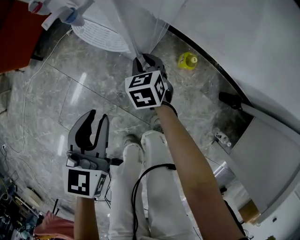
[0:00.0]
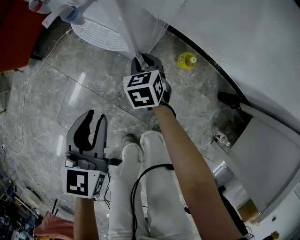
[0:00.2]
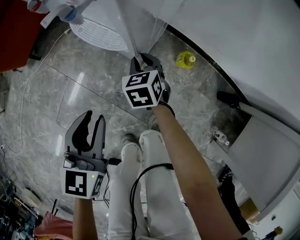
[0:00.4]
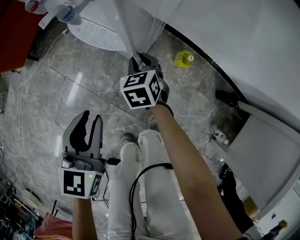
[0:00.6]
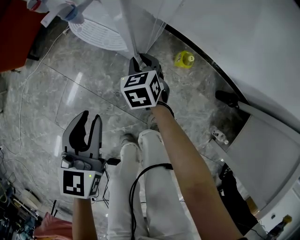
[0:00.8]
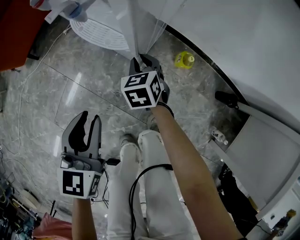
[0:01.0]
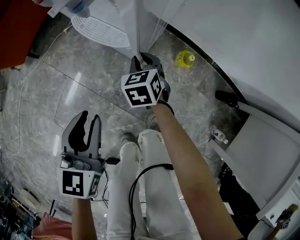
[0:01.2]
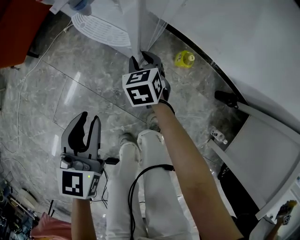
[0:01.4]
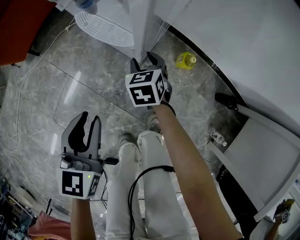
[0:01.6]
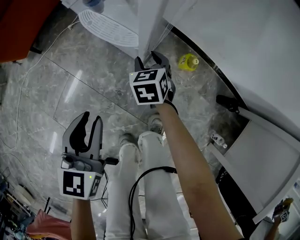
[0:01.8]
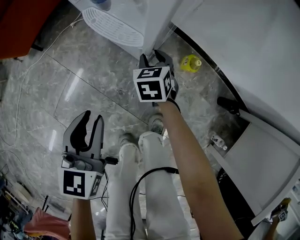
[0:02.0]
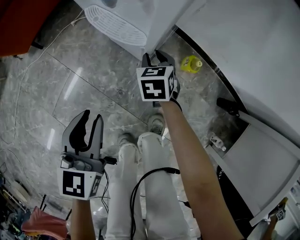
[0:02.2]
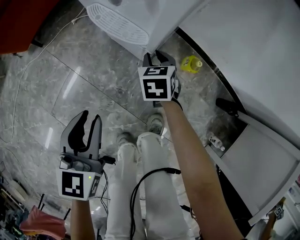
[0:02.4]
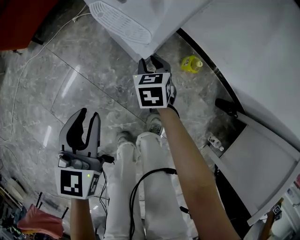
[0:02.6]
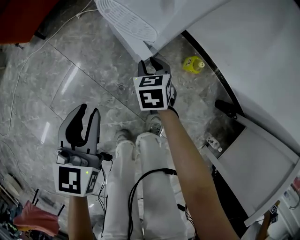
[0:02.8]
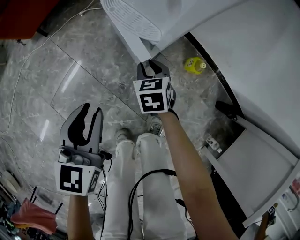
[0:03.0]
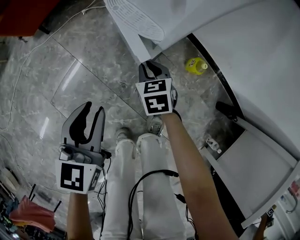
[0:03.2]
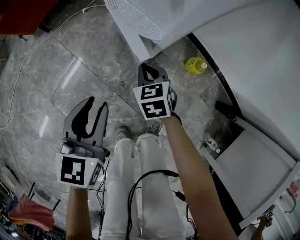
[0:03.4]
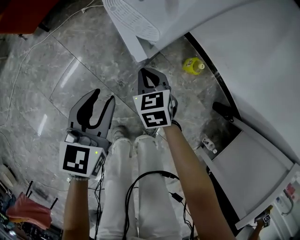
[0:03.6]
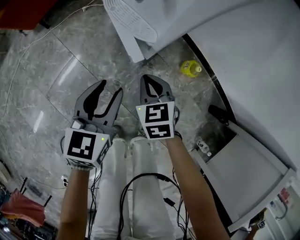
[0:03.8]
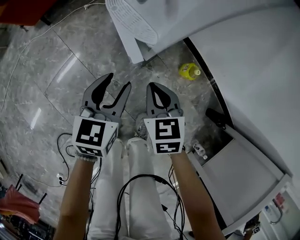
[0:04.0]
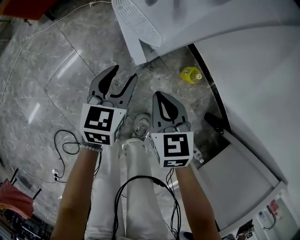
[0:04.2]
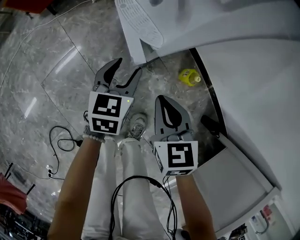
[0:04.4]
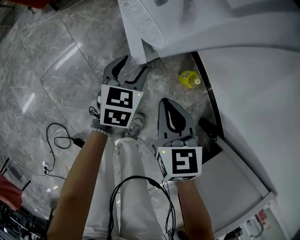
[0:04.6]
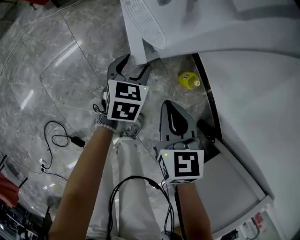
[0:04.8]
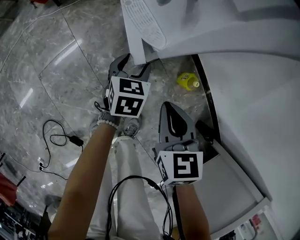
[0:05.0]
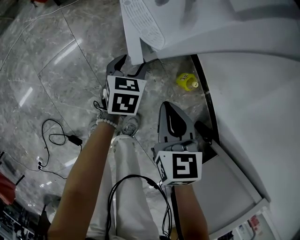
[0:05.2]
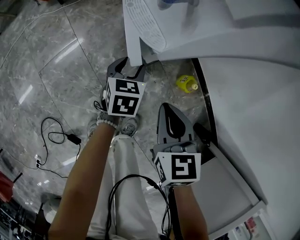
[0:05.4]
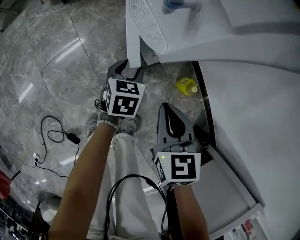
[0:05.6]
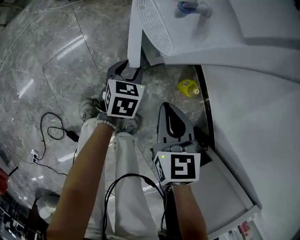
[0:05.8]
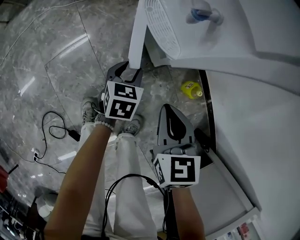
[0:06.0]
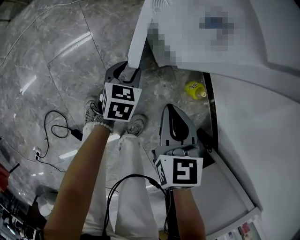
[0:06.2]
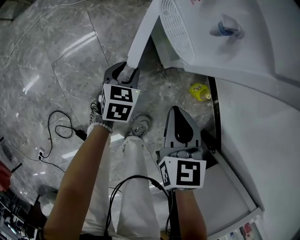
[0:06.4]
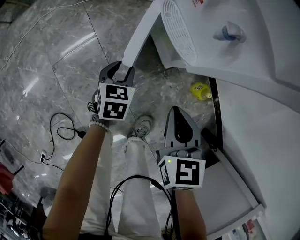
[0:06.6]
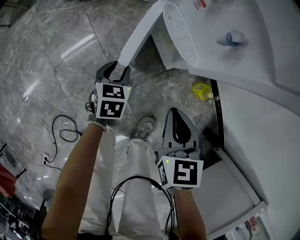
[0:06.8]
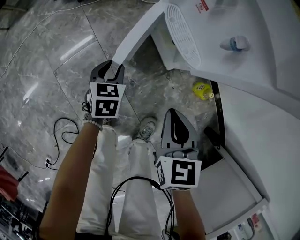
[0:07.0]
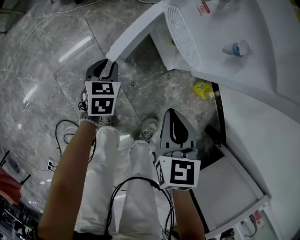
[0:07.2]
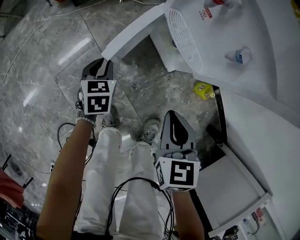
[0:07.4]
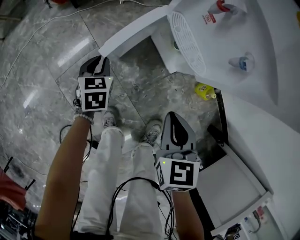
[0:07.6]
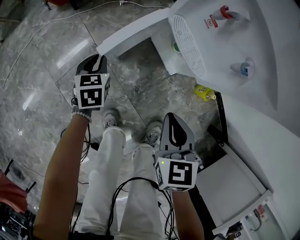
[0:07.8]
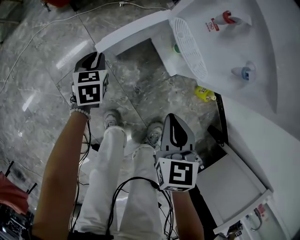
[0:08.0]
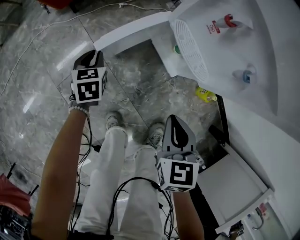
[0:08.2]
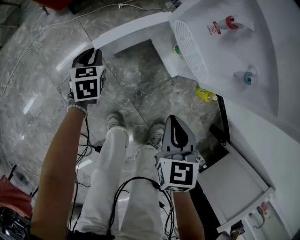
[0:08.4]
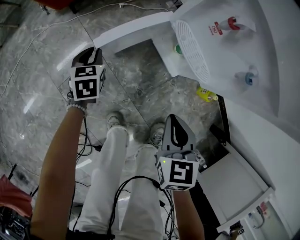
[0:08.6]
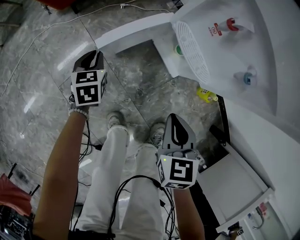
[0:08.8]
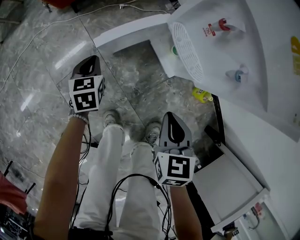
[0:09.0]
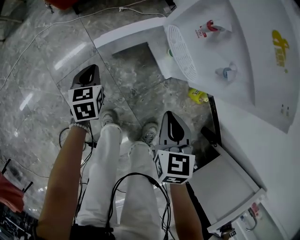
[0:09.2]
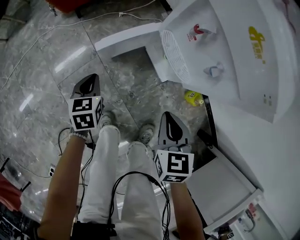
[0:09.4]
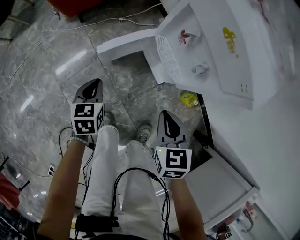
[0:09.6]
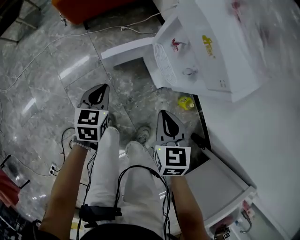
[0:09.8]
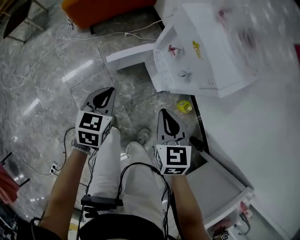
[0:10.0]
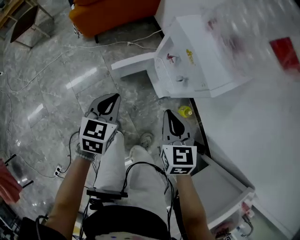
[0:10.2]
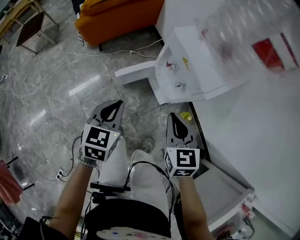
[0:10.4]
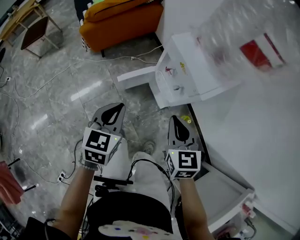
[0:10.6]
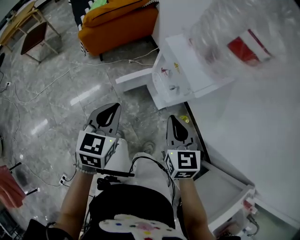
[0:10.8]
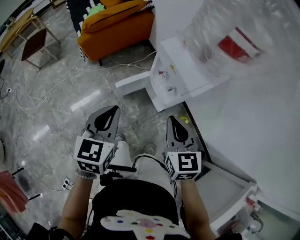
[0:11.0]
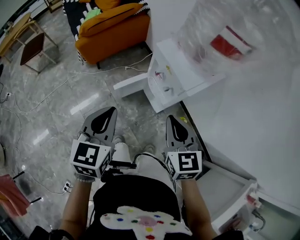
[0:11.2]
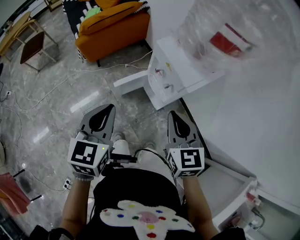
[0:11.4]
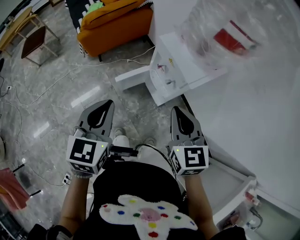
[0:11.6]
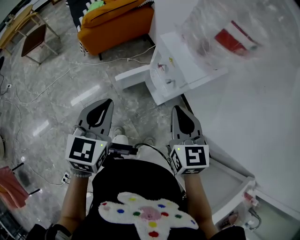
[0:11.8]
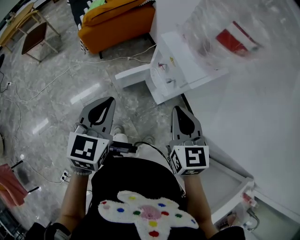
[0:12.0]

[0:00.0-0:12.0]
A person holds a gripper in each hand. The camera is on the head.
0:00.0 to 0:01.6: The right gripper opens its fingers.
0:01.6 to 0:03.0: The right gripper moves about 5 cm, and closes its fingers.
0:03.0 to 0:04.4: The right gripper shifts about 15 cm upward, backward and to the right, and closes up, while the left gripper travels downward, to the right and forward by some 15 cm, and opens its fingers.
0:04.4 to 0:06.0: The left gripper heads downward, covering roughly 5 cm.
0:06.0 to 0:07.6: The right gripper heads to the left, covering some 10 cm; the left gripper shifts some 20 cm to the left, and closes.
0:07.6 to 0:09.0: The left gripper moves roughly 5 cm.
0:09.0 to 0:10.4: The grippers both shift upward by roughly 35 cm.
0:10.4 to 0:12.0: Both grippers travel together upward, some 15 cm.

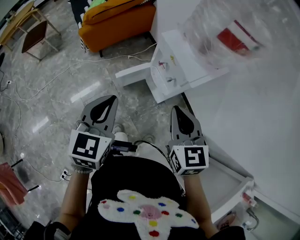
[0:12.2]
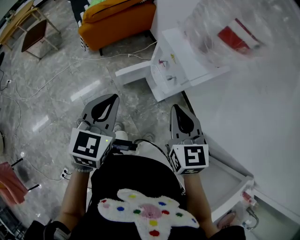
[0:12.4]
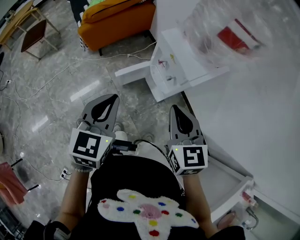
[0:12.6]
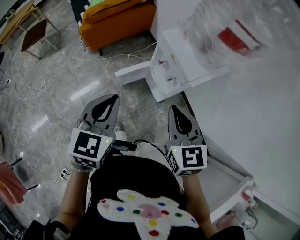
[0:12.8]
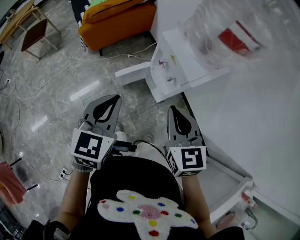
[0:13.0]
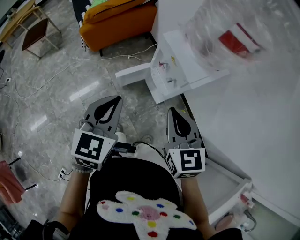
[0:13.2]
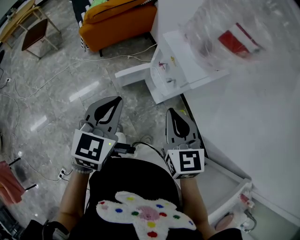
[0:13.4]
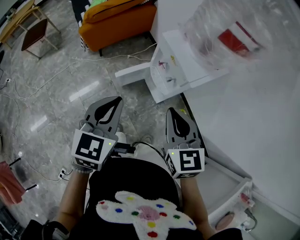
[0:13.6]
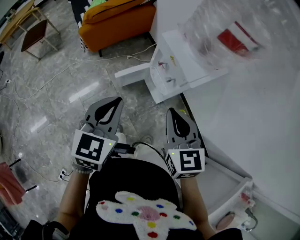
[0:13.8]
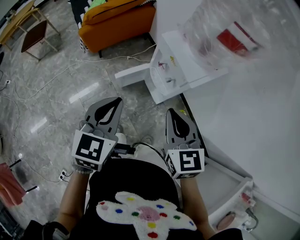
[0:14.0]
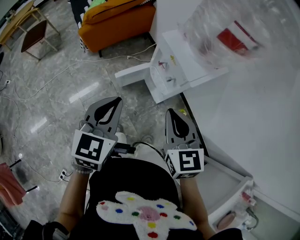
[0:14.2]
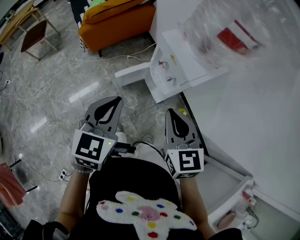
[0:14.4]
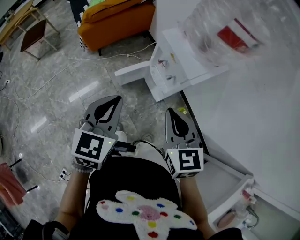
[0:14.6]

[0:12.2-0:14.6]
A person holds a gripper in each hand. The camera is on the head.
0:12.2 to 0:13.4: There are only small adjustments of the grippers.
0:13.4 to 0:14.6: Both grippers stay about where they are.

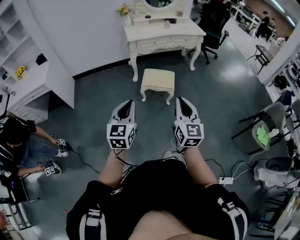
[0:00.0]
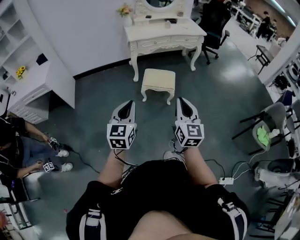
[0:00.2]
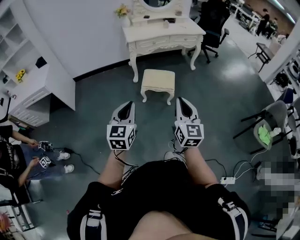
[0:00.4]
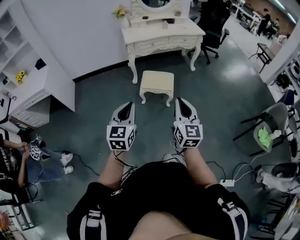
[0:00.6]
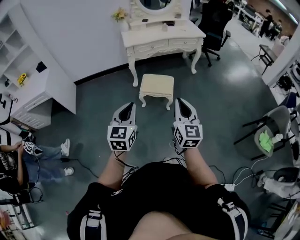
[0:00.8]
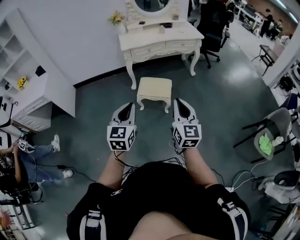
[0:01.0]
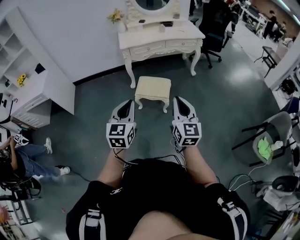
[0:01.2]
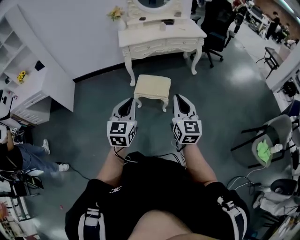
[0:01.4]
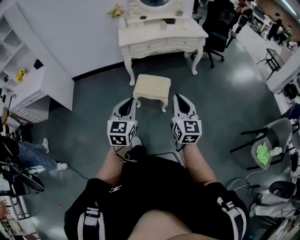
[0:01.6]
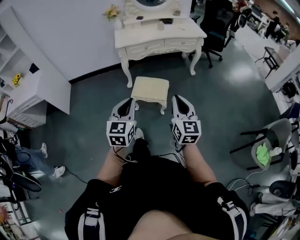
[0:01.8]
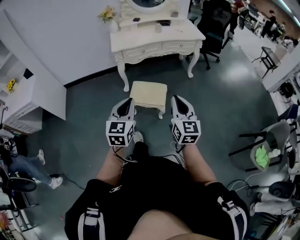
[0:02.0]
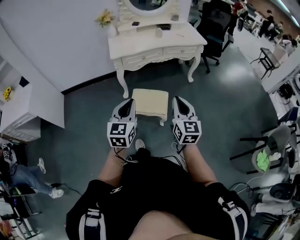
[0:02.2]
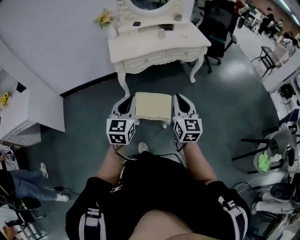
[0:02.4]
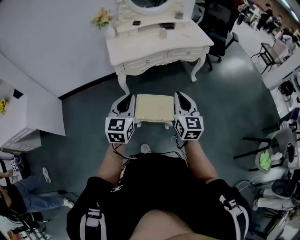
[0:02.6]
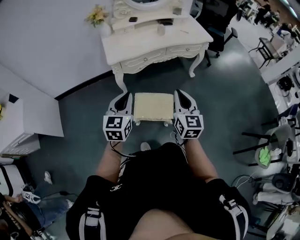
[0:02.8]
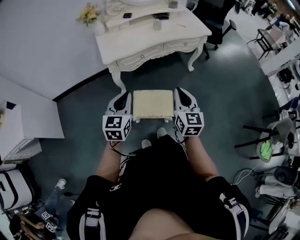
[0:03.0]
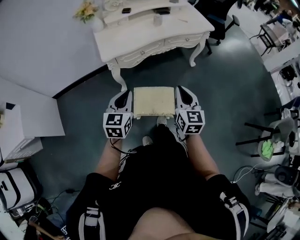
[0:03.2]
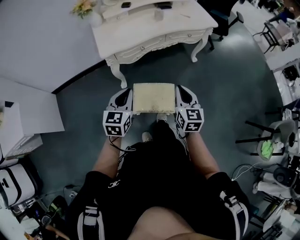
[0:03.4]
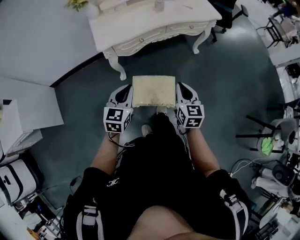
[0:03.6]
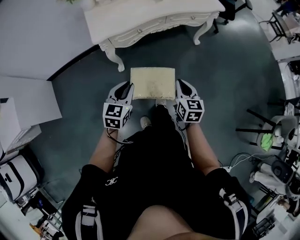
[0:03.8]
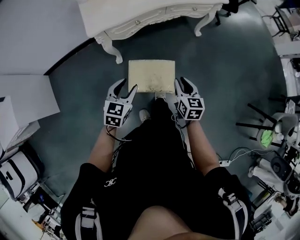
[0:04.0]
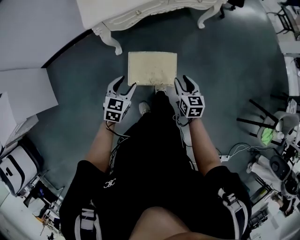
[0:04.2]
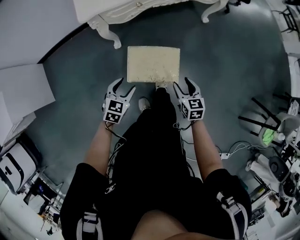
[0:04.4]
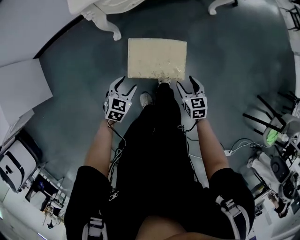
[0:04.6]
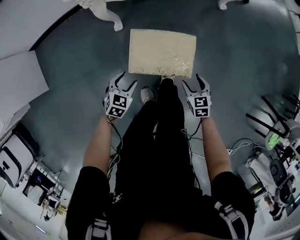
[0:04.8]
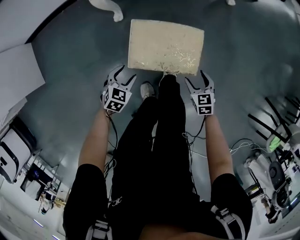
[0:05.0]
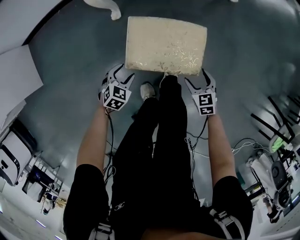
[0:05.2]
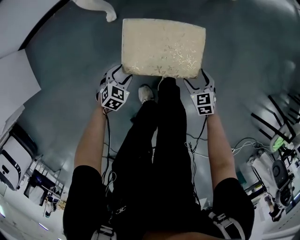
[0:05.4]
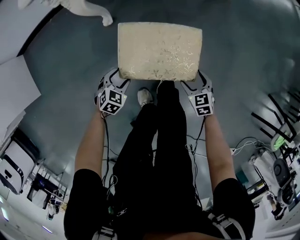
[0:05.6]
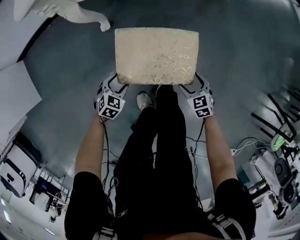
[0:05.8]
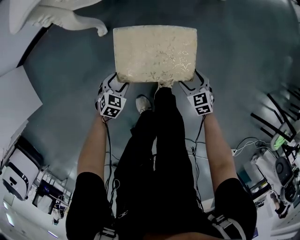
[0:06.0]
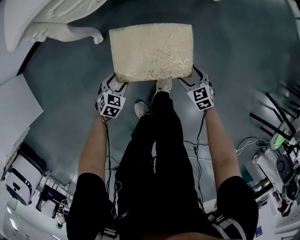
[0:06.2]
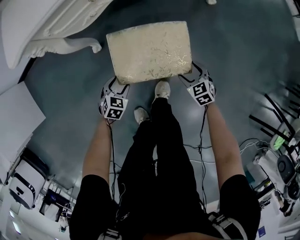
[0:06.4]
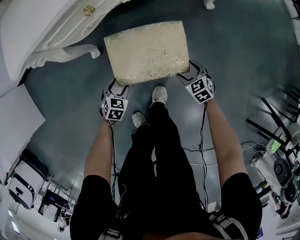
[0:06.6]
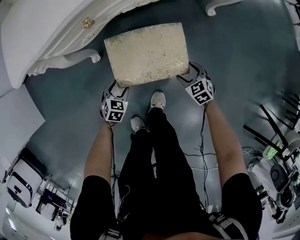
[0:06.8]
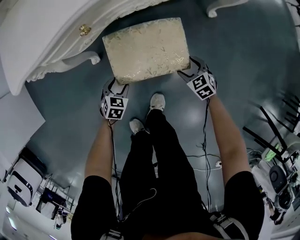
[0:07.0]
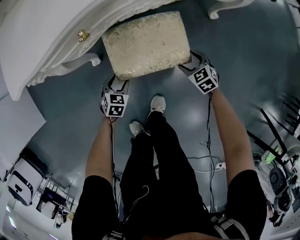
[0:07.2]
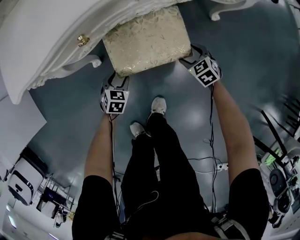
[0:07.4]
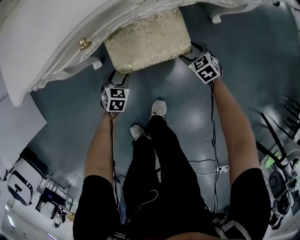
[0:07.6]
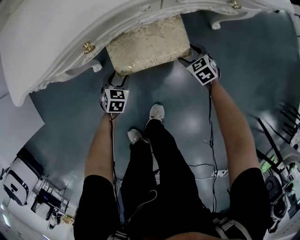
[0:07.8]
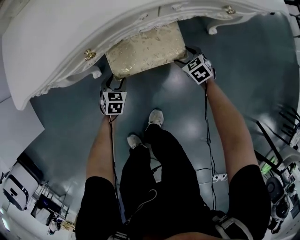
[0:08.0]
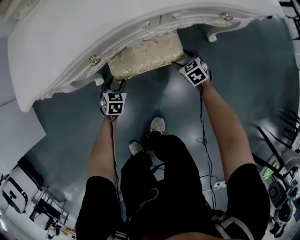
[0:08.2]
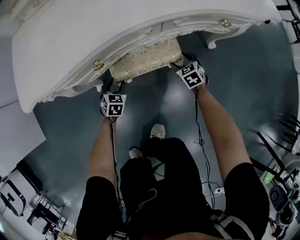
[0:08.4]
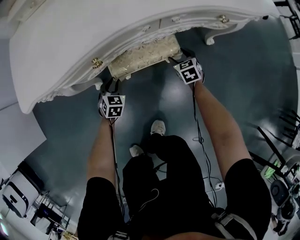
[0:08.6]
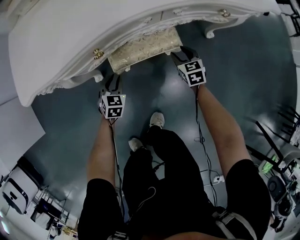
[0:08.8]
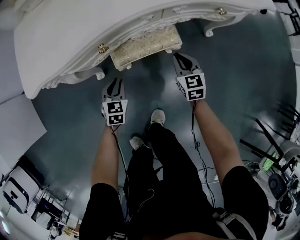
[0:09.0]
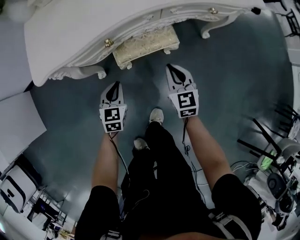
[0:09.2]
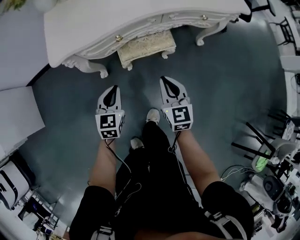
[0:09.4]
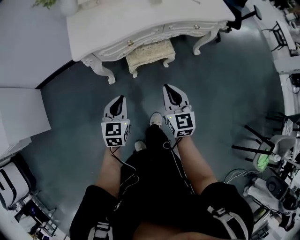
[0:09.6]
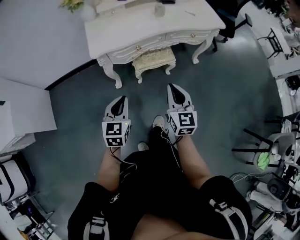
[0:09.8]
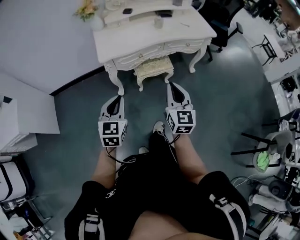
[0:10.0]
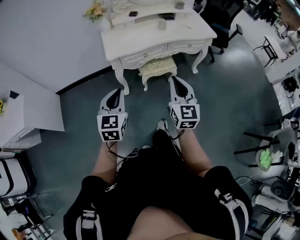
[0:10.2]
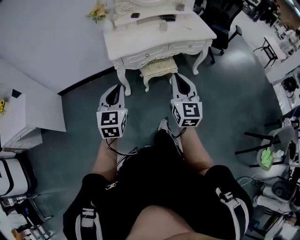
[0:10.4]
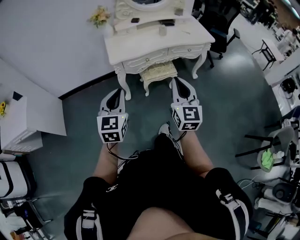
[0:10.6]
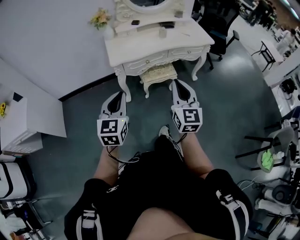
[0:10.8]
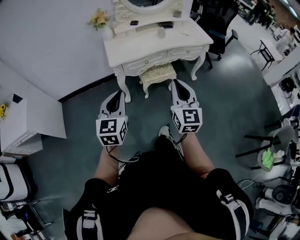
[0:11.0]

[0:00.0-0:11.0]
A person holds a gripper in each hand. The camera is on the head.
0:00.0 to 0:01.6: The right gripper is displaced forward and to the right by approximately 25 cm, while the left gripper is displaced to the right and forward by roughly 25 cm.
0:01.6 to 0:03.2: The two grippers travel together, forward, approximately 50 cm.
0:03.2 to 0:04.8: The grippers both shift downward by some 50 cm. The right gripper tips its fingers downward by roughly 40 degrees, and opens; the left gripper tips its fingers downward by roughly 30 degrees, and opens up.
0:04.8 to 0:06.2: The two grippers go about 20 cm downward and forward.
0:06.2 to 0:07.8: The right gripper travels forward by about 35 cm. The left gripper shifts roughly 30 cm forward and to the right.
0:07.8 to 0:09.4: The right gripper goes some 40 cm upward, backward and to the left, tilts its fingers roughly 40 degrees upward, and closes, while the left gripper moves upward, approximately 35 cm, changes its angle by approximately 30 degrees, and closes.
0:09.4 to 0:11.0: Both grippers travel together upward and backward, about 60 cm. The right gripper turns by roughly 30 degrees; the left gripper changes its angle by some 20 degrees.
